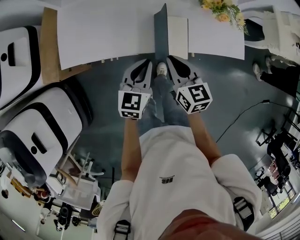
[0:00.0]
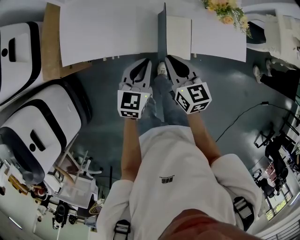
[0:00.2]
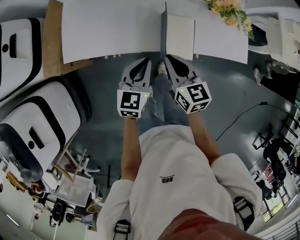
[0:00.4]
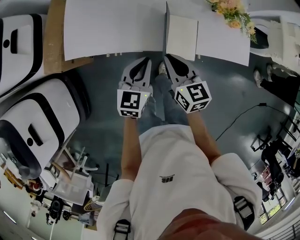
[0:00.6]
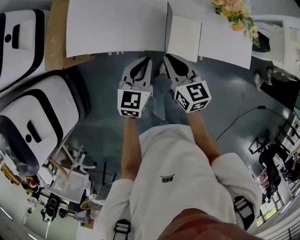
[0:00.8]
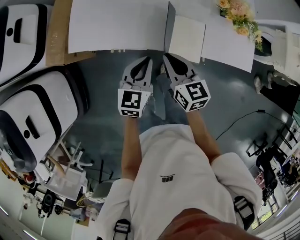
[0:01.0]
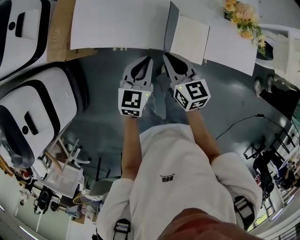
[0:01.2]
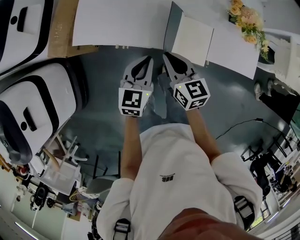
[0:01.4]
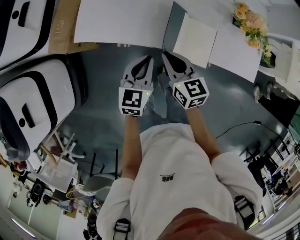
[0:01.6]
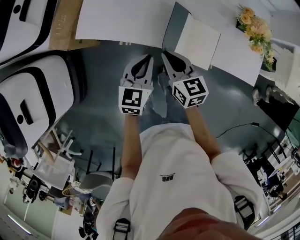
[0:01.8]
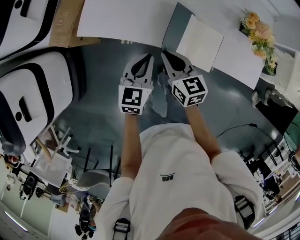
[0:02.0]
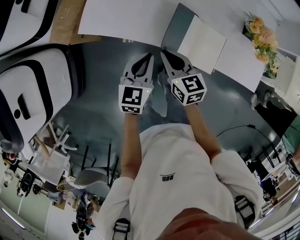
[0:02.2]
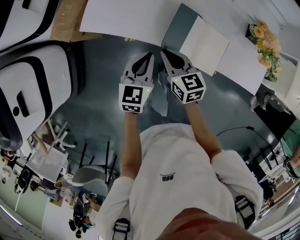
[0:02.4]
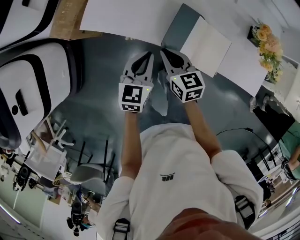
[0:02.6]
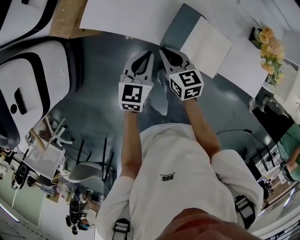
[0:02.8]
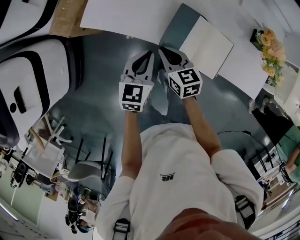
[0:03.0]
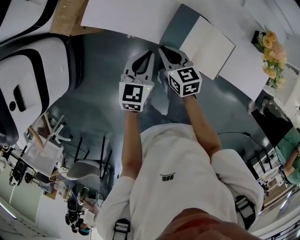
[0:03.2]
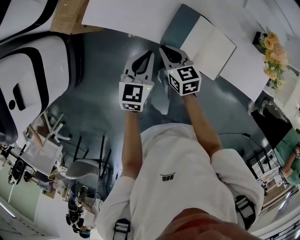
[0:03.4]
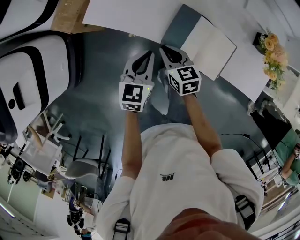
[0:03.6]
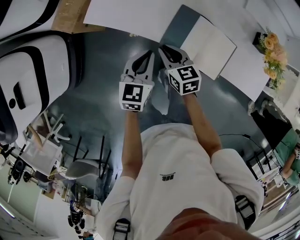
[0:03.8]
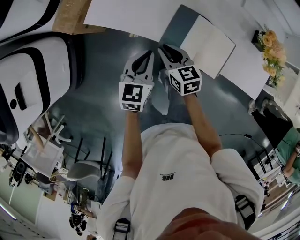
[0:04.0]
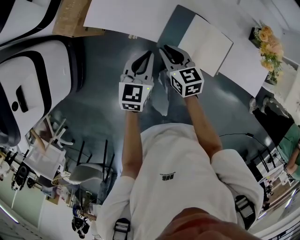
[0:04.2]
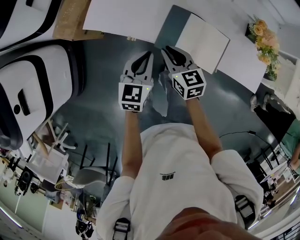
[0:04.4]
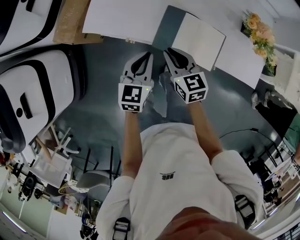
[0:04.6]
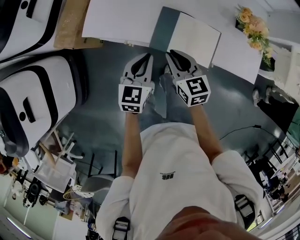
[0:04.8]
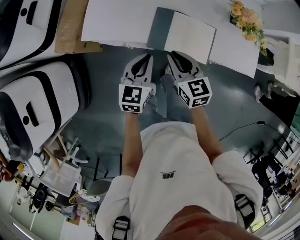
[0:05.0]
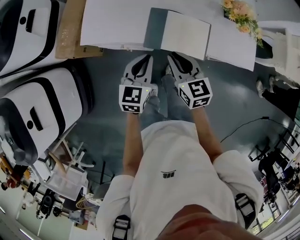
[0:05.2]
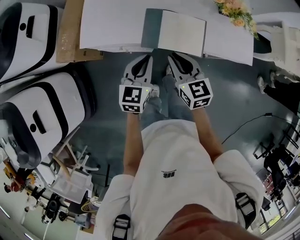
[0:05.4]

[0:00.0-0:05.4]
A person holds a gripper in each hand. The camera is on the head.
0:00.0 to 0:01.4: The two grippers go roughly 10 cm to the left.
0:01.4 to 0:02.8: The left gripper goes about 5 cm to the left, while the right gripper travels downward and to the left by some 10 cm.
0:02.8 to 0:04.0: There are only small adjustments of the grippers.
0:04.0 to 0:05.4: The left gripper moves upward, to the right and backward, roughly 10 cm. The right gripper heads upward, to the right and backward, covering some 20 cm, and turns by about 20 degrees.

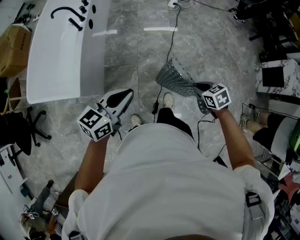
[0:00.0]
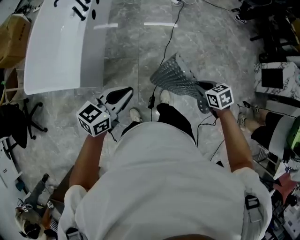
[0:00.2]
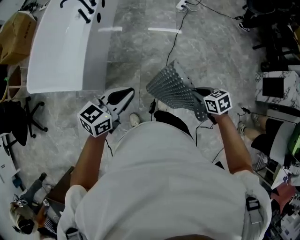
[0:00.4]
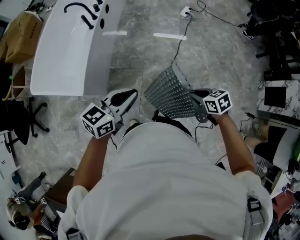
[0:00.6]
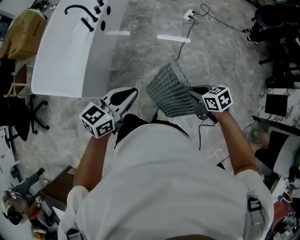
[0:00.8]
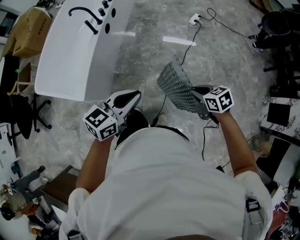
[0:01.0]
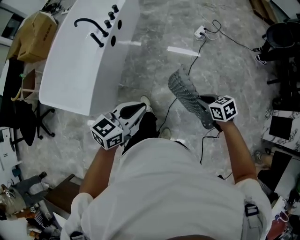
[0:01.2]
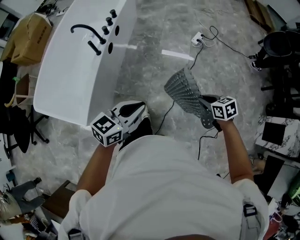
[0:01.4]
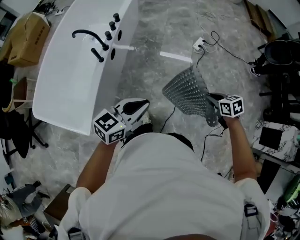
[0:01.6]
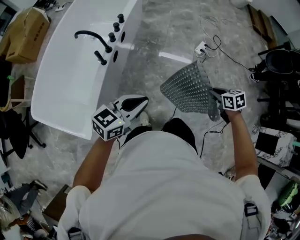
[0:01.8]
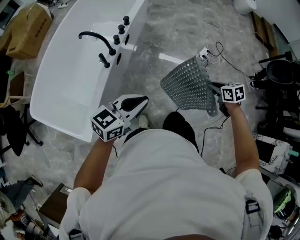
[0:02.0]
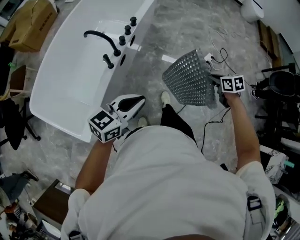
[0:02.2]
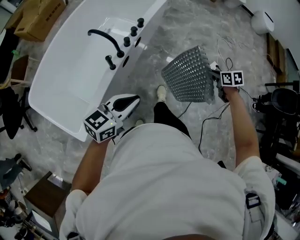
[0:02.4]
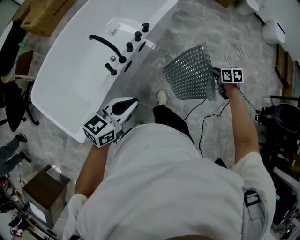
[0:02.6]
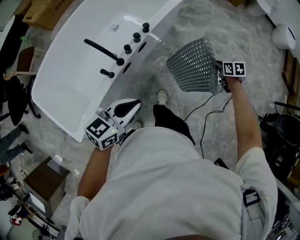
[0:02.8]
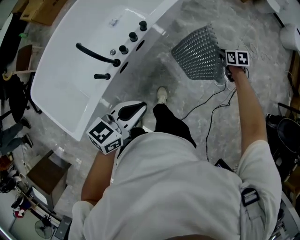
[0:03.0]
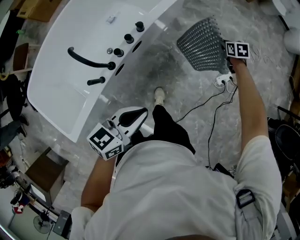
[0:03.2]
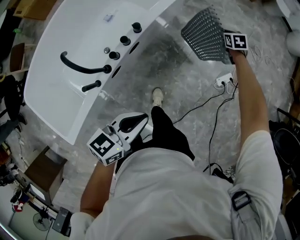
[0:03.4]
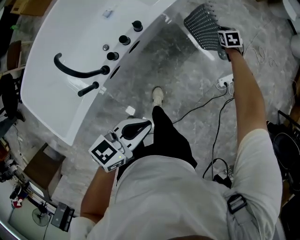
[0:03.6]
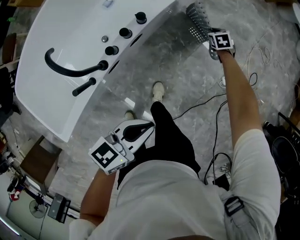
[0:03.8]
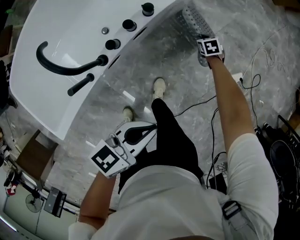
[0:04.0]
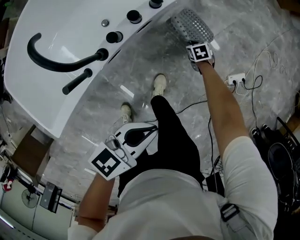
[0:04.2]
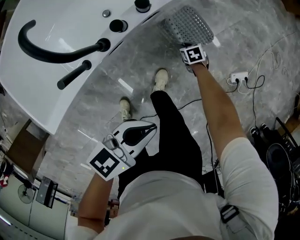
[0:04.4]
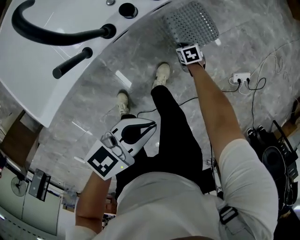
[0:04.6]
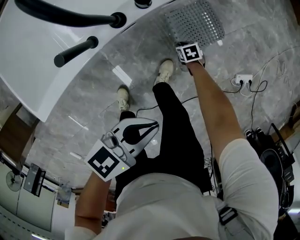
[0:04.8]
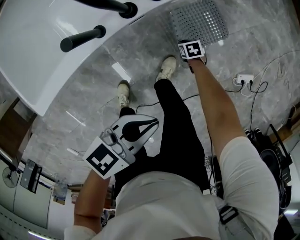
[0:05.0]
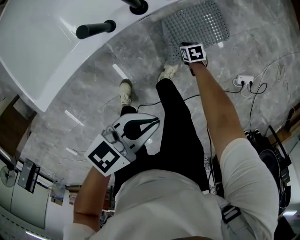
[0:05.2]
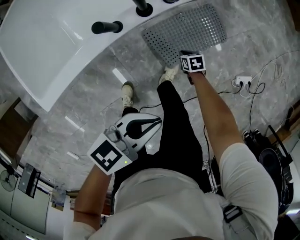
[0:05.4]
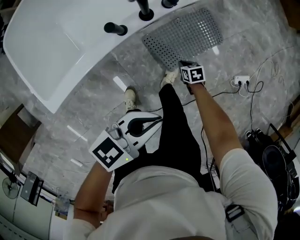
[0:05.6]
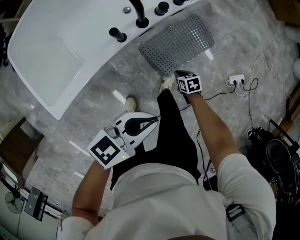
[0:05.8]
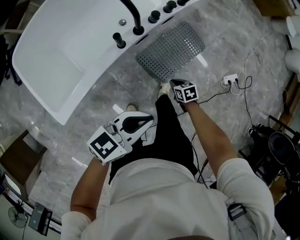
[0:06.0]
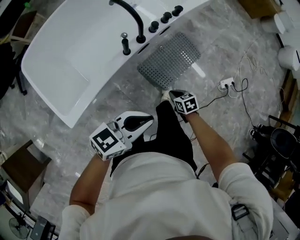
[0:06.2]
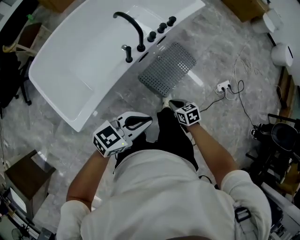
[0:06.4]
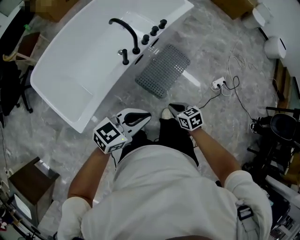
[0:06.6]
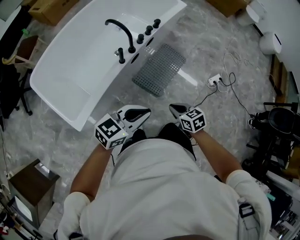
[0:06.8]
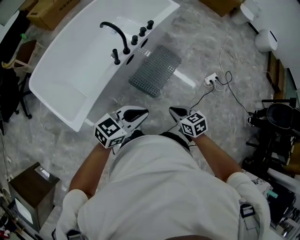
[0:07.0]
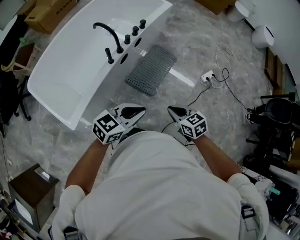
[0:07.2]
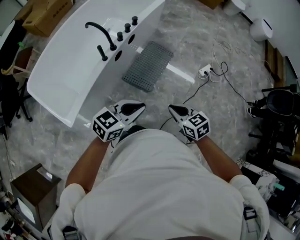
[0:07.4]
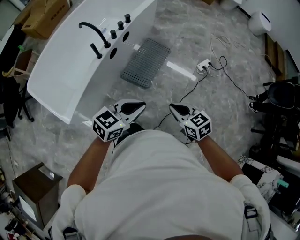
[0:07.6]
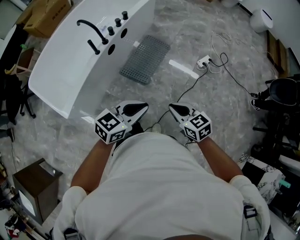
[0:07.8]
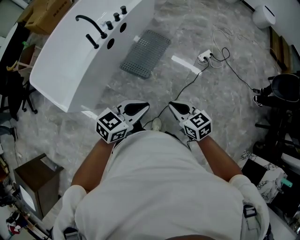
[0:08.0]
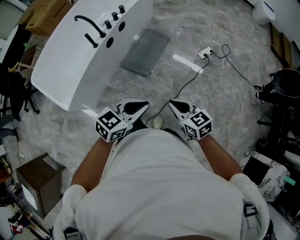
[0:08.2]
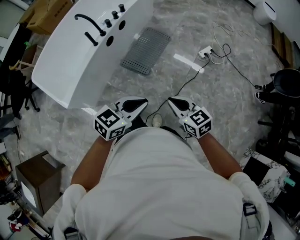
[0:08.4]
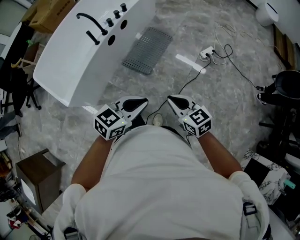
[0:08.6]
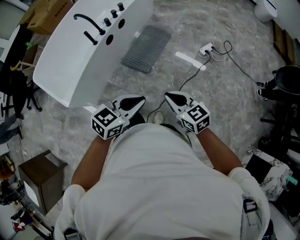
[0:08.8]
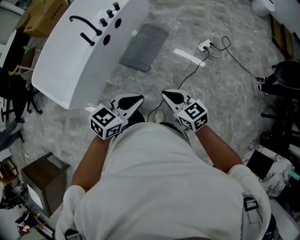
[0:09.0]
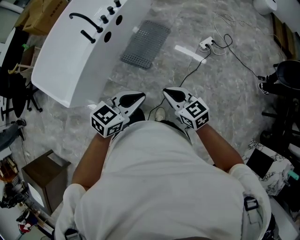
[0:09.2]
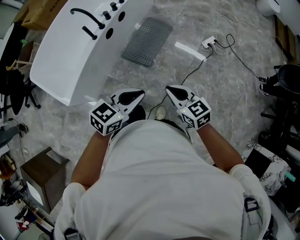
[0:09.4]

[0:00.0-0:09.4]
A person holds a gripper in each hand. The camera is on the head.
0:00.0 to 0:01.6: The grippers both shift forward by about 35 cm.
0:01.6 to 0:03.2: The pair of grippers is taken forward, approximately 60 cm. The right gripper changes its angle by roughly 20 degrees, while the left gripper rotates about 30 degrees.
0:03.2 to 0:04.8: The left gripper goes about 20 cm downward, while the right gripper moves downward, approximately 40 cm, and changes its angle by about 40 degrees.
0:04.8 to 0:06.2: The right gripper is displaced upward by approximately 30 cm, while the left gripper ends up approximately 25 cm from where it was, and turns by approximately 30 degrees.
0:06.2 to 0:07.8: The left gripper shifts some 30 cm to the right and backward. The right gripper shifts approximately 50 cm upward, backward and to the right, and changes its angle by approximately 30 degrees.

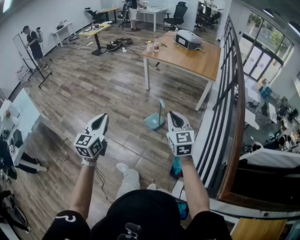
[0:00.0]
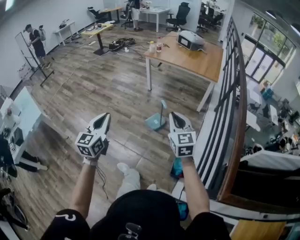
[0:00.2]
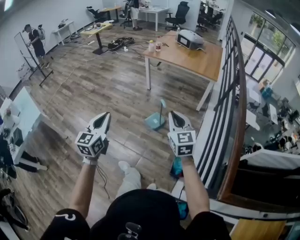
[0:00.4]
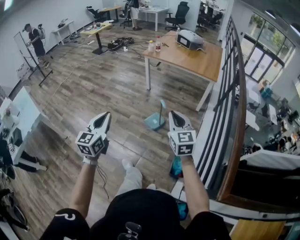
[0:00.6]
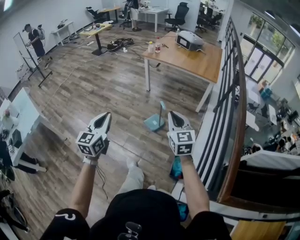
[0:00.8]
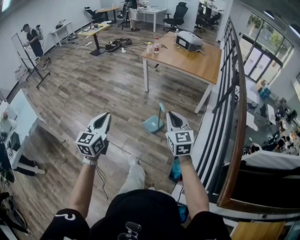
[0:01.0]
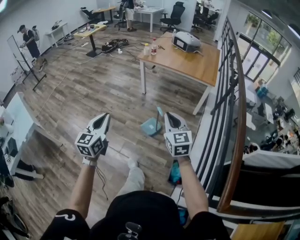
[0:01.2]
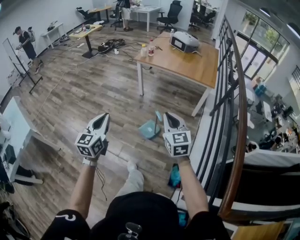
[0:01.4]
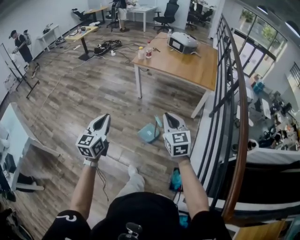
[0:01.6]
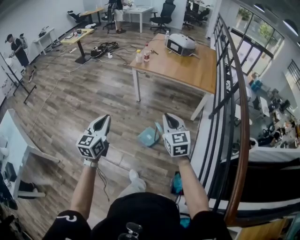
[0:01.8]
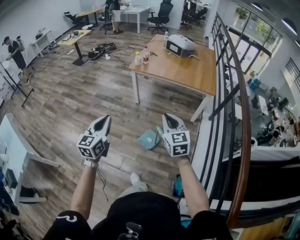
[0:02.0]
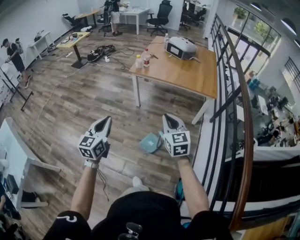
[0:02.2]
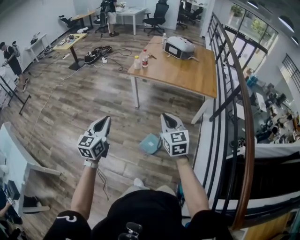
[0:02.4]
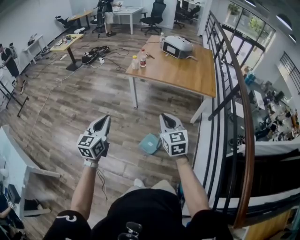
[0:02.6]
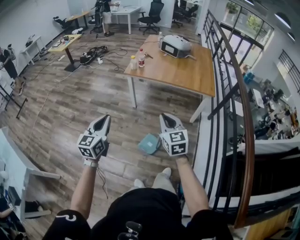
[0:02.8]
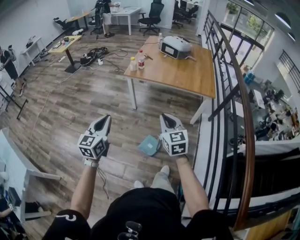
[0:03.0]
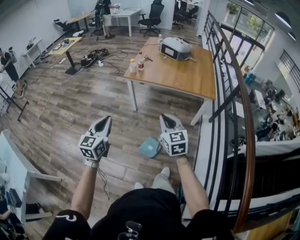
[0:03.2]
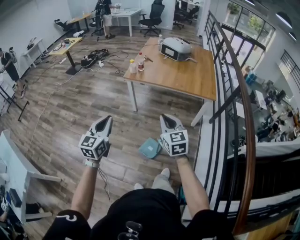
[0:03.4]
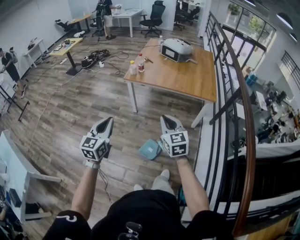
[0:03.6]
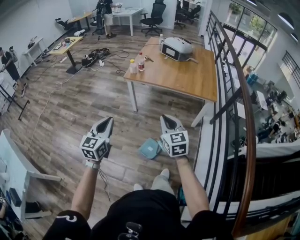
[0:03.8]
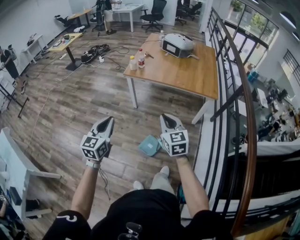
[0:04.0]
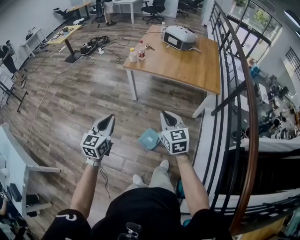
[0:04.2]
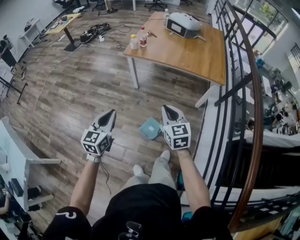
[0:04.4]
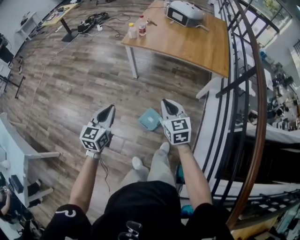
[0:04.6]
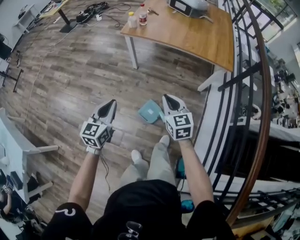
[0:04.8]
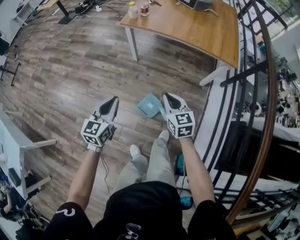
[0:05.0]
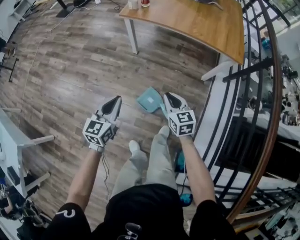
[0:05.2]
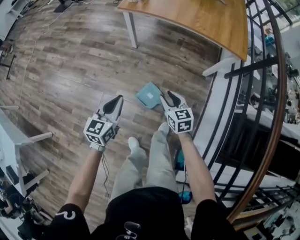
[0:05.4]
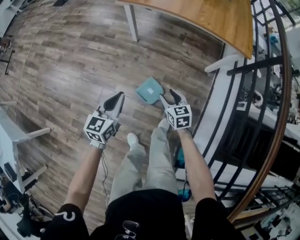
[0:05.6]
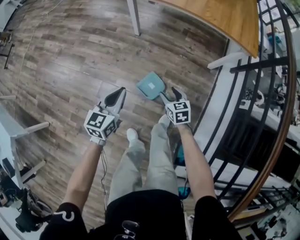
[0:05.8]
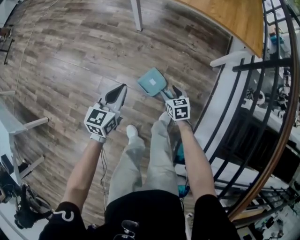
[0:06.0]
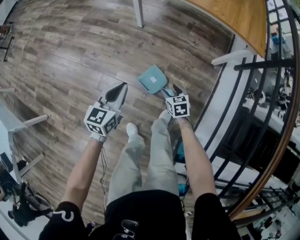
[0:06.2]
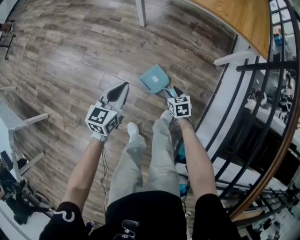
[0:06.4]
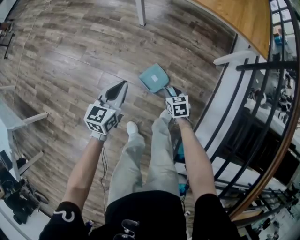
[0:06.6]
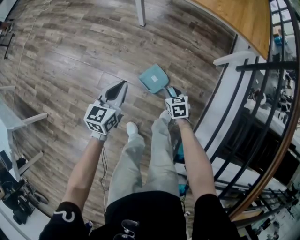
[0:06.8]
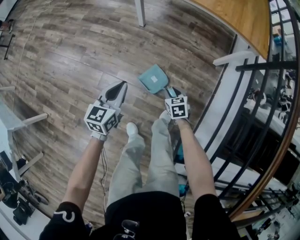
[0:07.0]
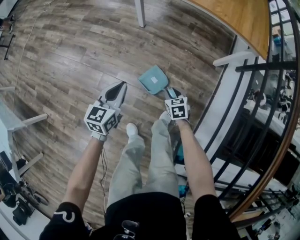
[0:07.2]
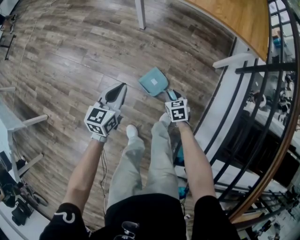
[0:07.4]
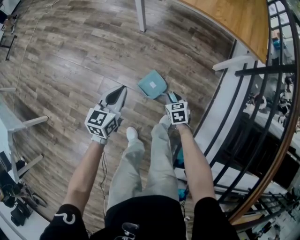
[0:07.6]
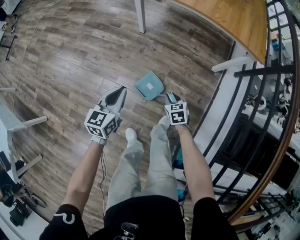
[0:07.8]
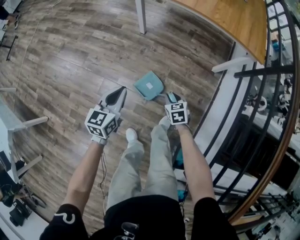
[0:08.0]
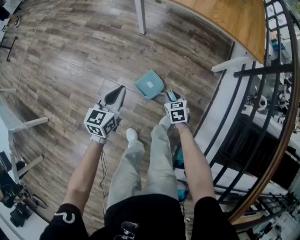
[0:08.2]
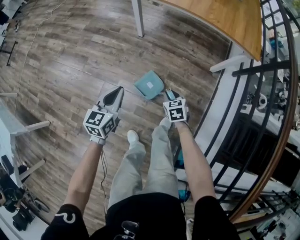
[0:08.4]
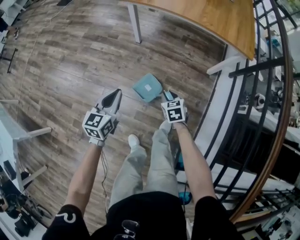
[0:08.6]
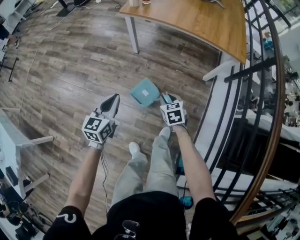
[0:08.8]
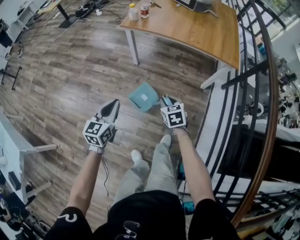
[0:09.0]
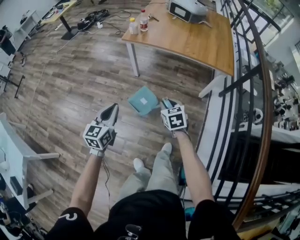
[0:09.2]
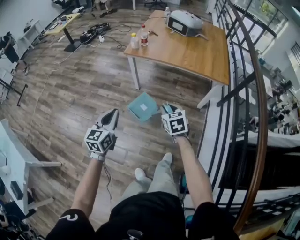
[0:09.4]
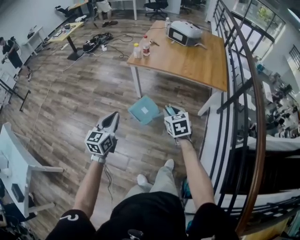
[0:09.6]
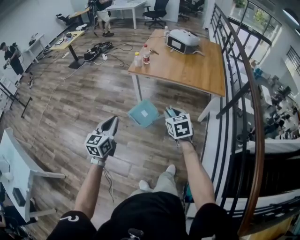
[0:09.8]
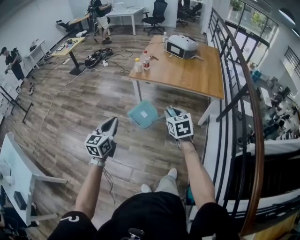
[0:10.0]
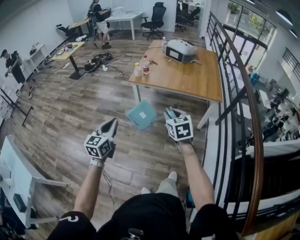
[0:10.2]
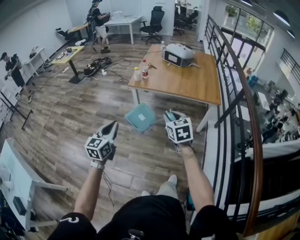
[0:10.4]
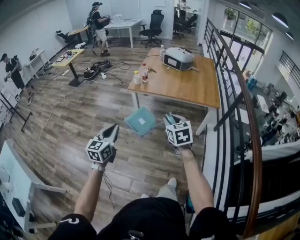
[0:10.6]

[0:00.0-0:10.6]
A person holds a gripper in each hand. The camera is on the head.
0:00.0 to 0:01.6: Both grippers travel together forward, roughly 25 cm.
0:01.6 to 0:03.0: The grippers both shift forward by about 20 cm.
0:03.0 to 0:04.6: The right gripper goes roughly 15 cm downward and forward. The left gripper goes about 15 cm downward, forward and to the right.
0:04.6 to 0:06.0: The left gripper travels downward by some 25 cm; the right gripper travels downward by about 40 cm, rotates approximately 30 degrees, and opens.
0:06.0 to 0:07.6: The right gripper closes up.
0:07.6 to 0:09.0: The grippers both shift upward by about 20 cm.
0:09.0 to 0:10.6: The left gripper is displaced upward by roughly 20 cm. The right gripper heads upward, covering some 30 cm.
